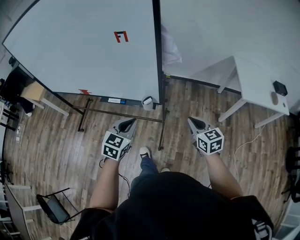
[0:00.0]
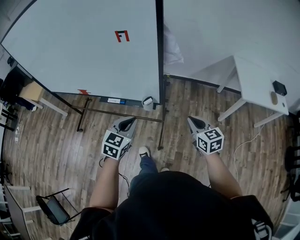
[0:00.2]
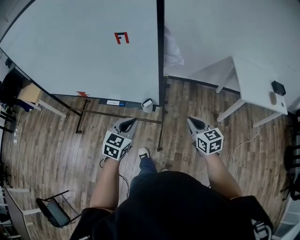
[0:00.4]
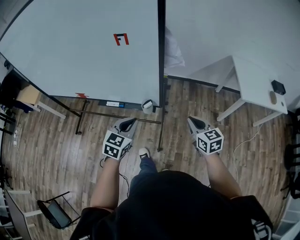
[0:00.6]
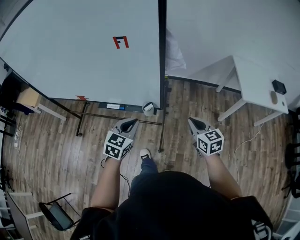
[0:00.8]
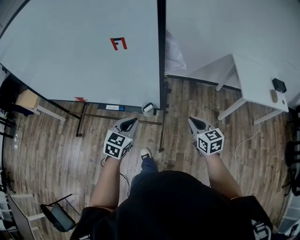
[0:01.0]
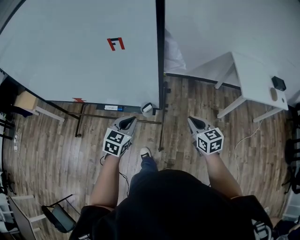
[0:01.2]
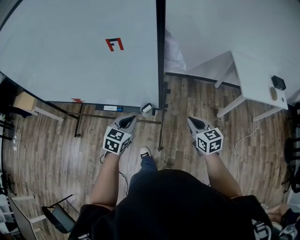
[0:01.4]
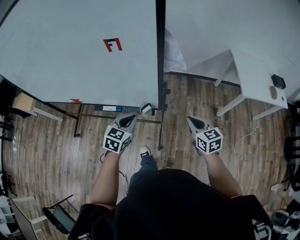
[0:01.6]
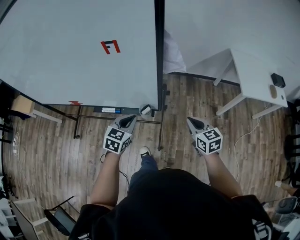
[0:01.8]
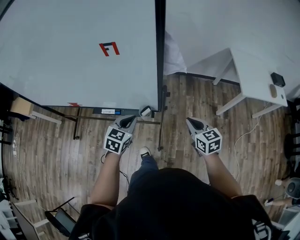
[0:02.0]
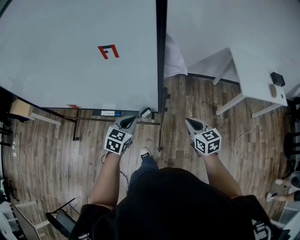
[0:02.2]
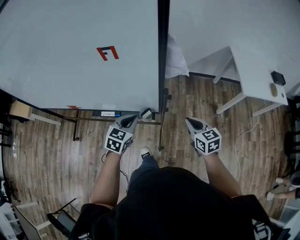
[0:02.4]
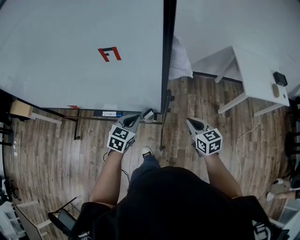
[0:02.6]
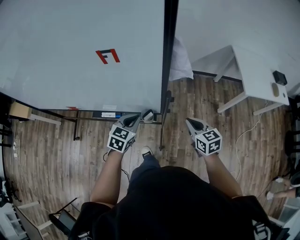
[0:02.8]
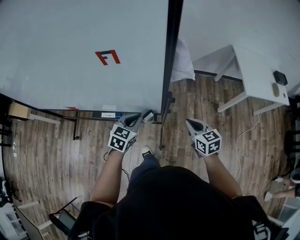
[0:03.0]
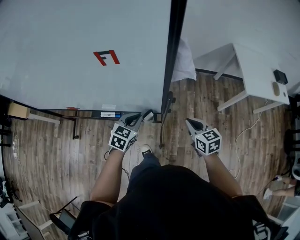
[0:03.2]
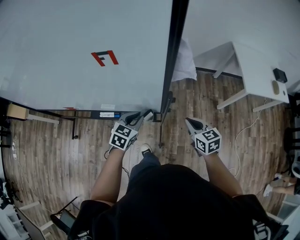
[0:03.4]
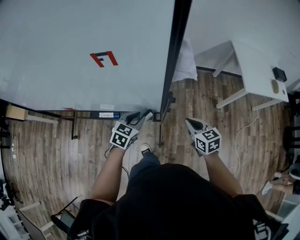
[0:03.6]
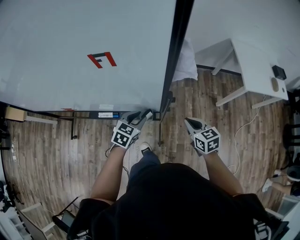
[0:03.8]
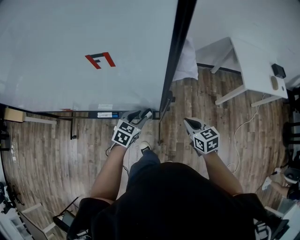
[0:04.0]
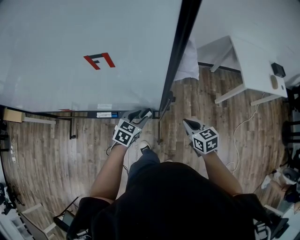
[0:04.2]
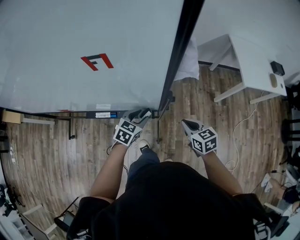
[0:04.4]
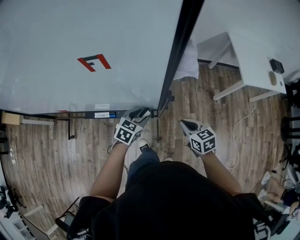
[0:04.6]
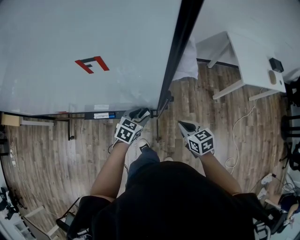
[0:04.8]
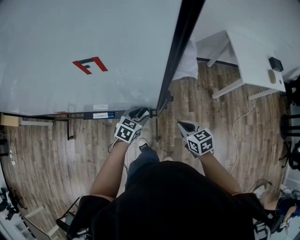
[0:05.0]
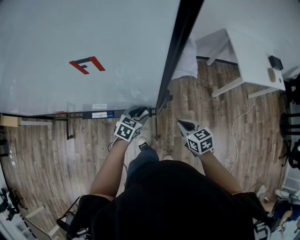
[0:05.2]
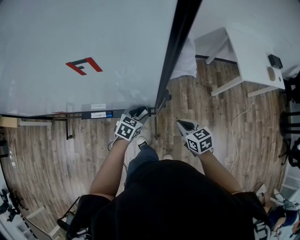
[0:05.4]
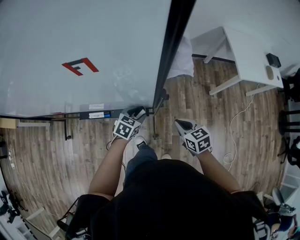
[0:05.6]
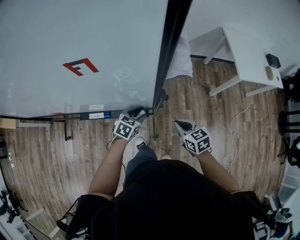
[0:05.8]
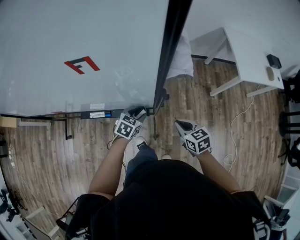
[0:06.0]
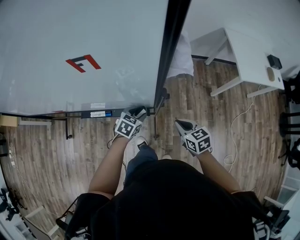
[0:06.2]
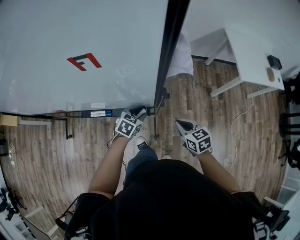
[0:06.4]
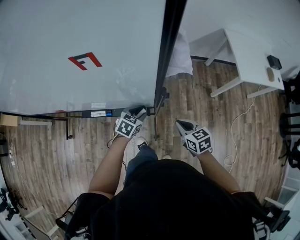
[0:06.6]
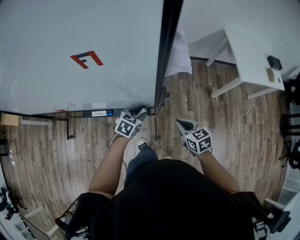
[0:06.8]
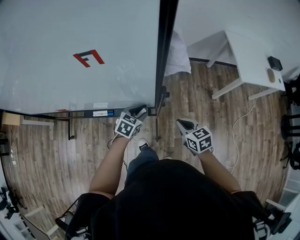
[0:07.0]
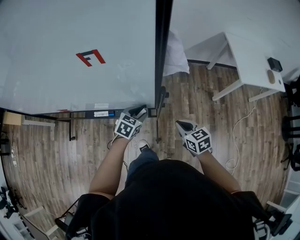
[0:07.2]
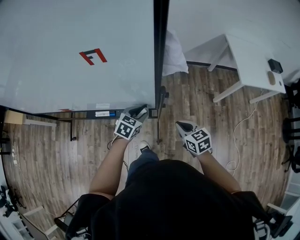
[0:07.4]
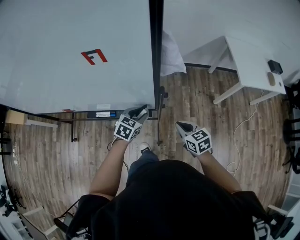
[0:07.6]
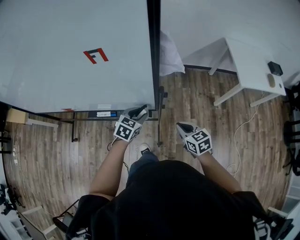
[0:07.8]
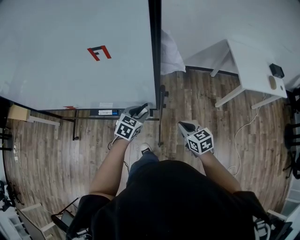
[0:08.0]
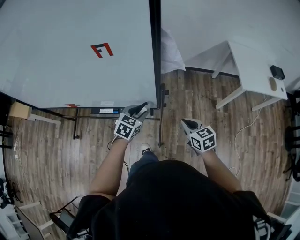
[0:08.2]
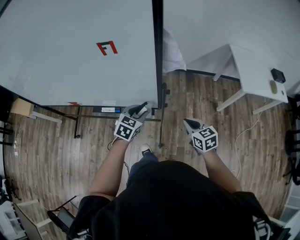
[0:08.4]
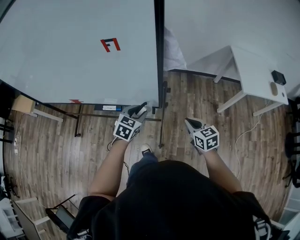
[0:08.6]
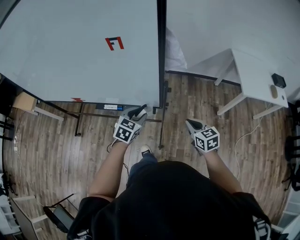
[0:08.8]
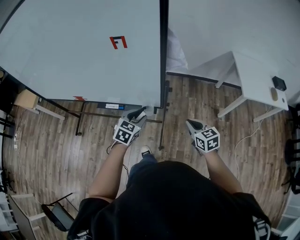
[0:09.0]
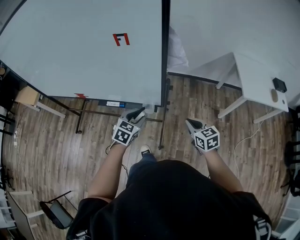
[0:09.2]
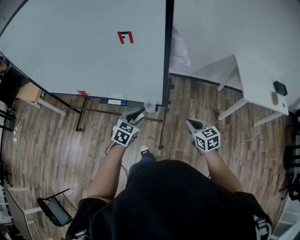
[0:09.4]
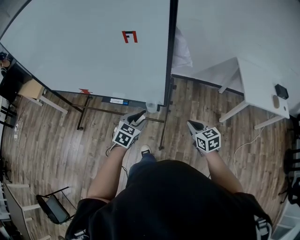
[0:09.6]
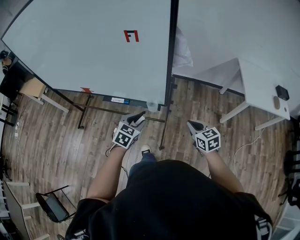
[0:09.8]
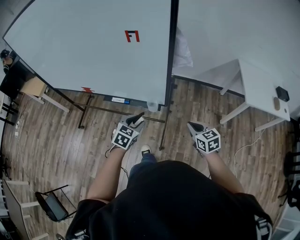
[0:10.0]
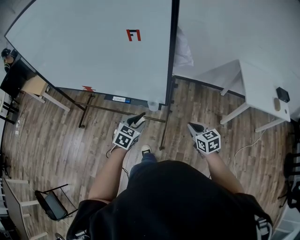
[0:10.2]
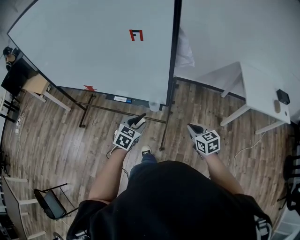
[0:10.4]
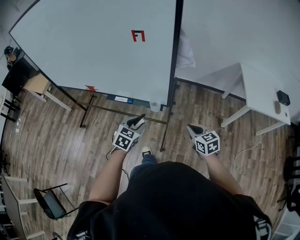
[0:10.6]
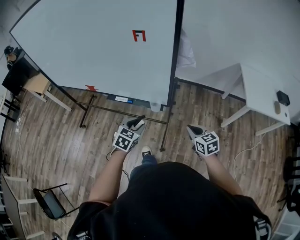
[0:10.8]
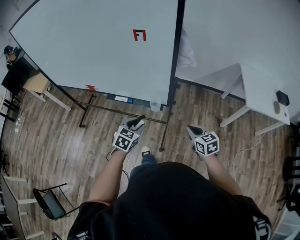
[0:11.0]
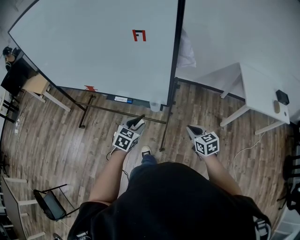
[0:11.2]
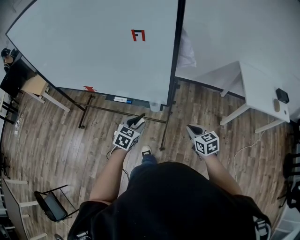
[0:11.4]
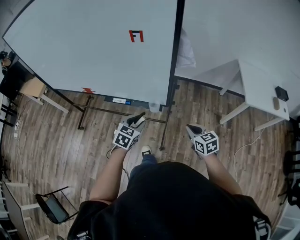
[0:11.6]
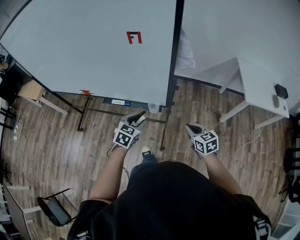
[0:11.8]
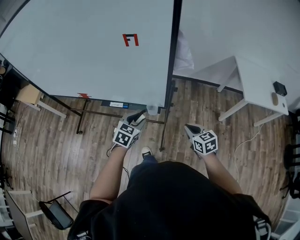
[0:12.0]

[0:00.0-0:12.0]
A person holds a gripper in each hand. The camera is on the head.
0:00.0 to 0:01.6: The left gripper moves forward and downward, approximately 15 cm. Meanwhile the right gripper is displaced forward by approximately 5 cm.
0:01.6 to 0:03.0: The left gripper heads forward, covering approximately 5 cm. The right gripper moves roughly 5 cm.
0:03.0 to 0:04.4: The left gripper travels downward by some 5 cm, and opens up.
0:04.4 to 0:06.0: The left gripper ends up about 5 cm from where it was.
0:06.0 to 0:07.6: The left gripper shifts roughly 5 cm upward.
0:07.6 to 0:09.0: The left gripper is displaced backward and upward by some 10 cm. Meanwhile the right gripper ends up about 5 cm from where it was.
0:09.0 to 0:10.4: The left gripper shifts some 10 cm backward.
0:10.4 to 0:12.0: The left gripper is displaced forward by about 5 cm.

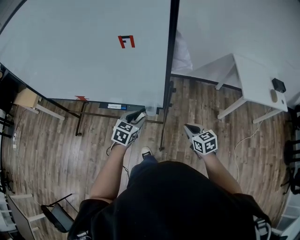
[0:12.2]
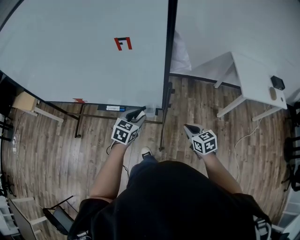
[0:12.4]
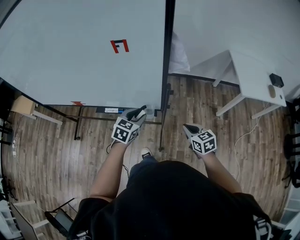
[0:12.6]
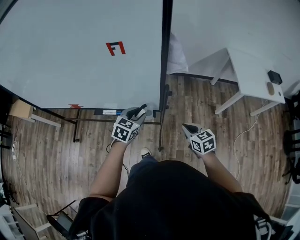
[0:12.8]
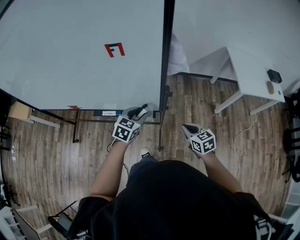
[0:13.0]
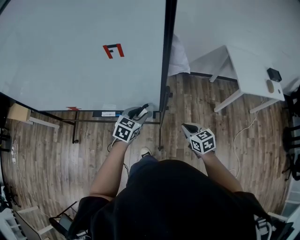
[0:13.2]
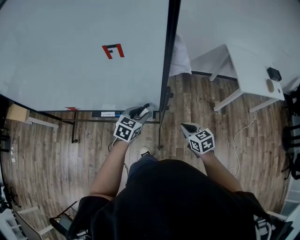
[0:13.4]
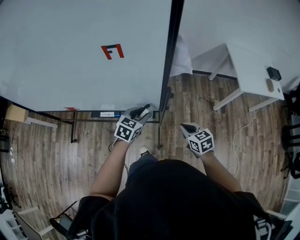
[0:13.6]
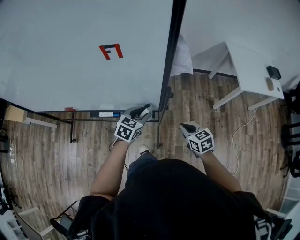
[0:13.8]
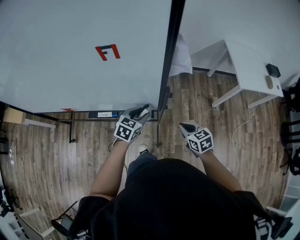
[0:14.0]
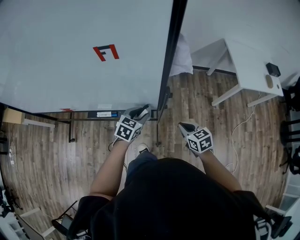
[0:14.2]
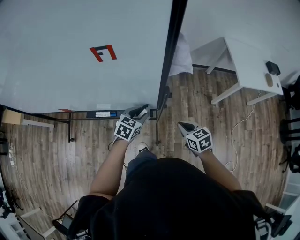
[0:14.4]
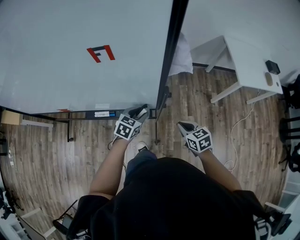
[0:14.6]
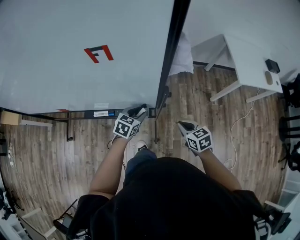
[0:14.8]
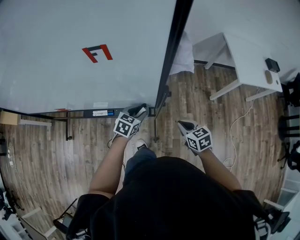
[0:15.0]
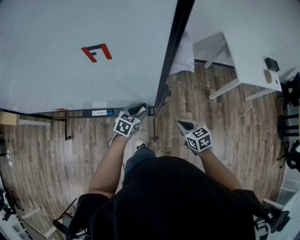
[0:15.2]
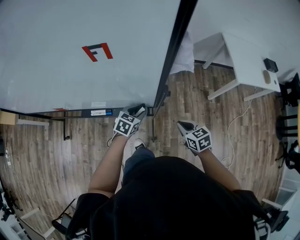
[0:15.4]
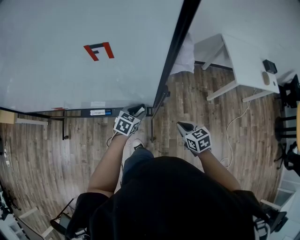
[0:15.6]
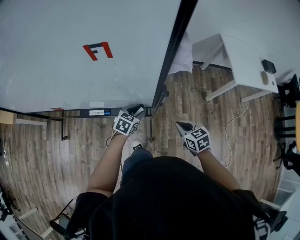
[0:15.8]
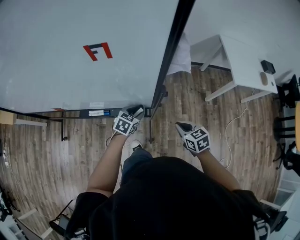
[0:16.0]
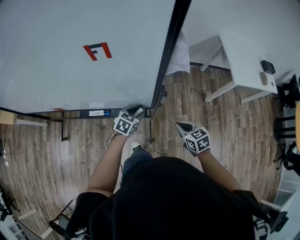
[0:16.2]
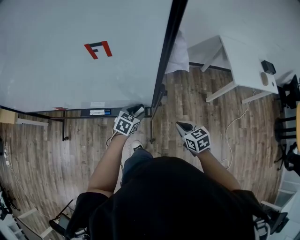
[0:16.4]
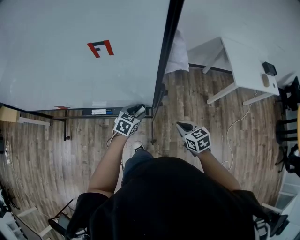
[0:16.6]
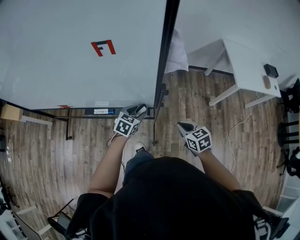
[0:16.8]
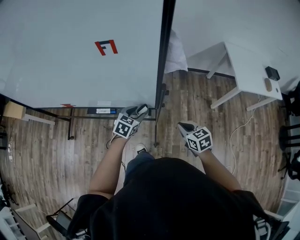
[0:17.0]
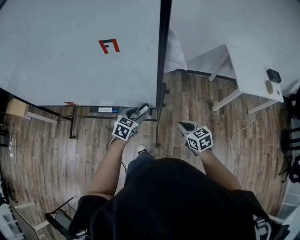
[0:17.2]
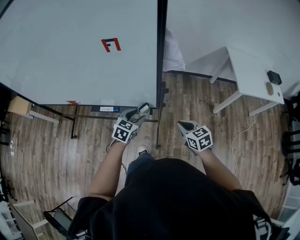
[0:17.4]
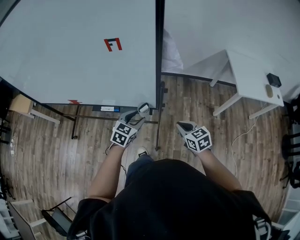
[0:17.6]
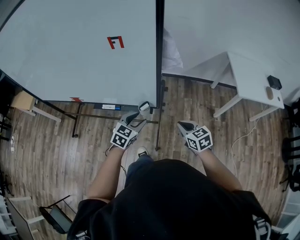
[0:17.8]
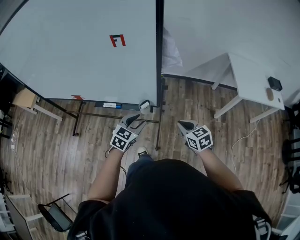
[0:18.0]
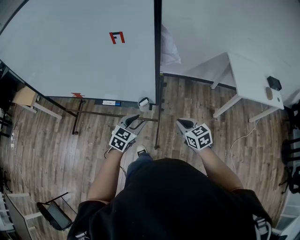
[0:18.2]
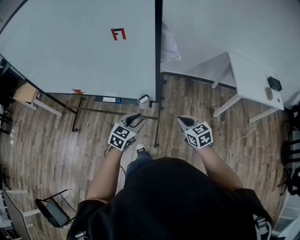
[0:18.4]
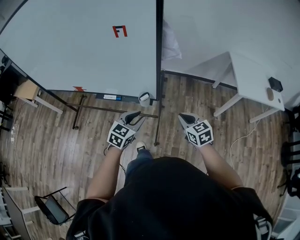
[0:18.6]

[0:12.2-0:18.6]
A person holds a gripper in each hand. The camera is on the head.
0:12.2 to 0:13.8: The right gripper ends up approximately 5 cm from where it was, while the left gripper travels forward by approximately 10 cm.
0:13.8 to 0:15.4: The left gripper heads downward, covering some 10 cm.
0:15.4 to 0:17.0: The left gripper ends up some 5 cm from where it was.
0:17.0 to 0:18.6: The left gripper is displaced backward and upward by roughly 20 cm, while the right gripper goes approximately 10 cm upward and backward.

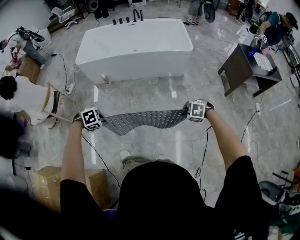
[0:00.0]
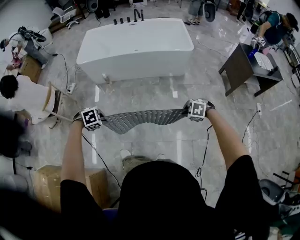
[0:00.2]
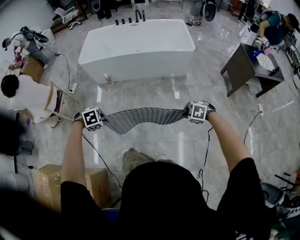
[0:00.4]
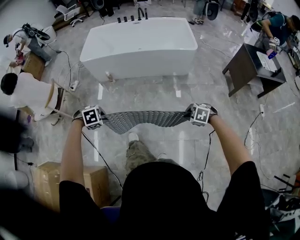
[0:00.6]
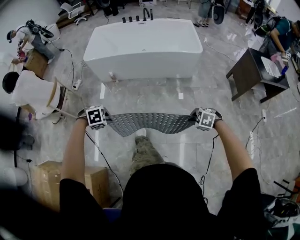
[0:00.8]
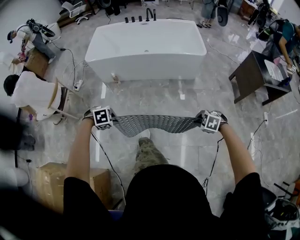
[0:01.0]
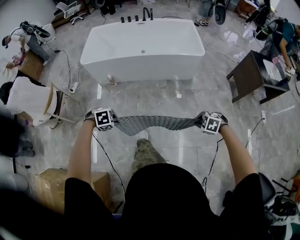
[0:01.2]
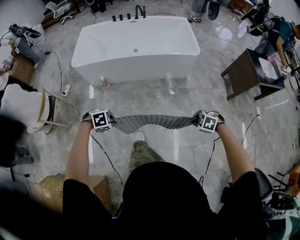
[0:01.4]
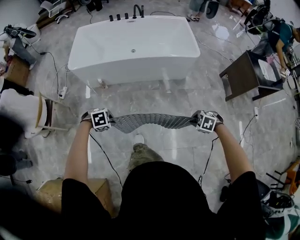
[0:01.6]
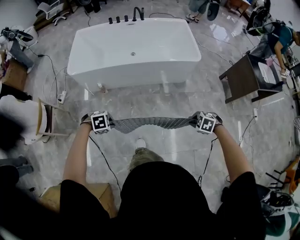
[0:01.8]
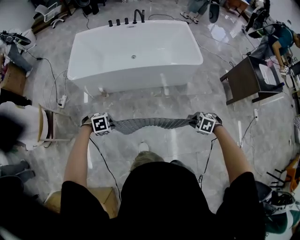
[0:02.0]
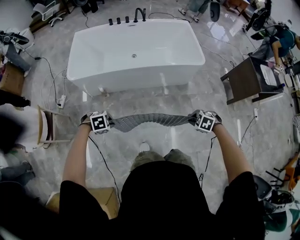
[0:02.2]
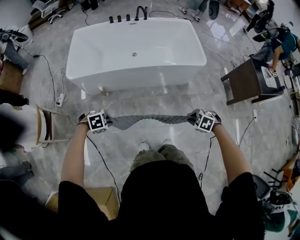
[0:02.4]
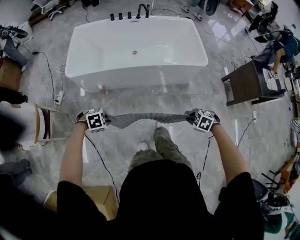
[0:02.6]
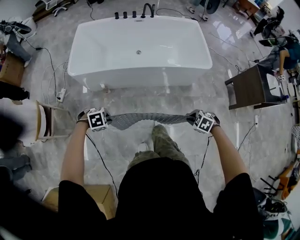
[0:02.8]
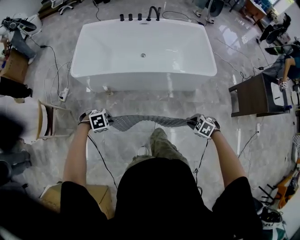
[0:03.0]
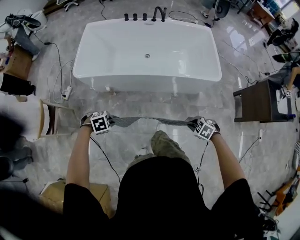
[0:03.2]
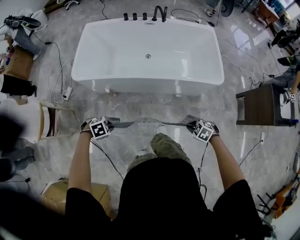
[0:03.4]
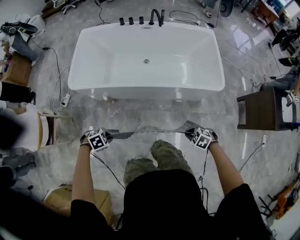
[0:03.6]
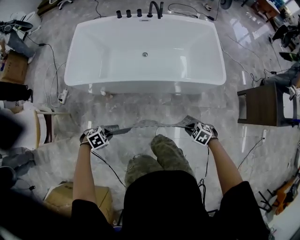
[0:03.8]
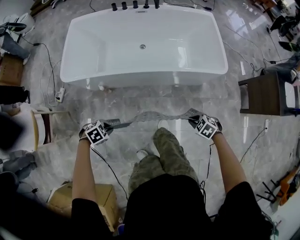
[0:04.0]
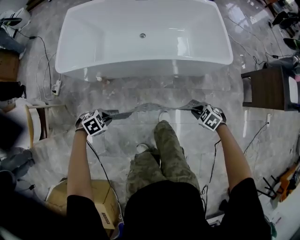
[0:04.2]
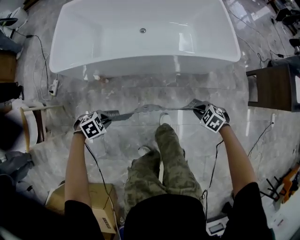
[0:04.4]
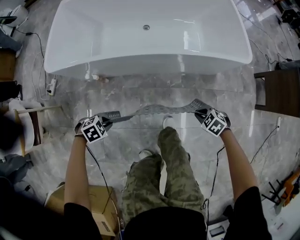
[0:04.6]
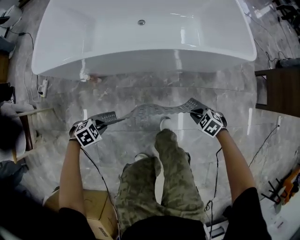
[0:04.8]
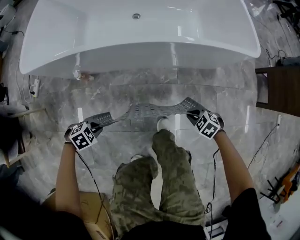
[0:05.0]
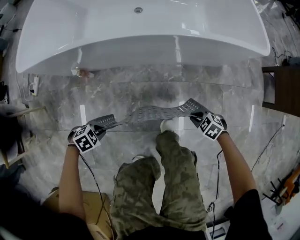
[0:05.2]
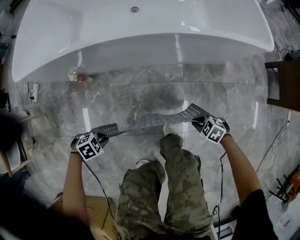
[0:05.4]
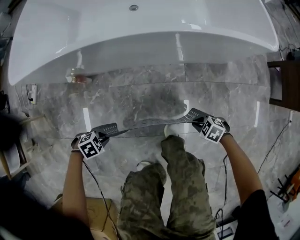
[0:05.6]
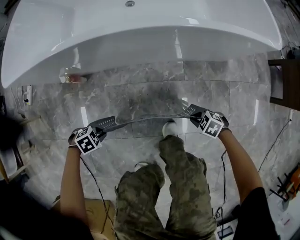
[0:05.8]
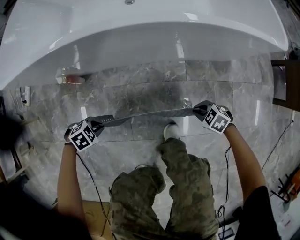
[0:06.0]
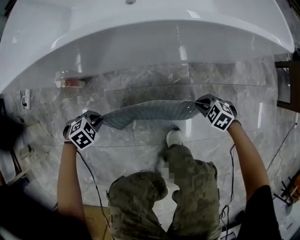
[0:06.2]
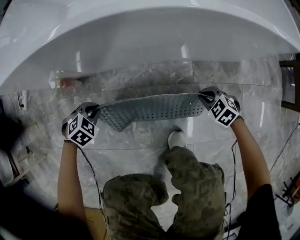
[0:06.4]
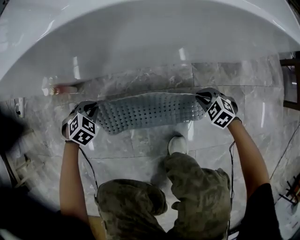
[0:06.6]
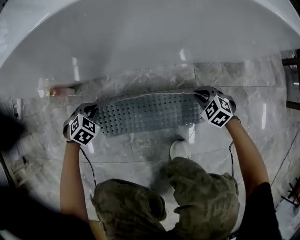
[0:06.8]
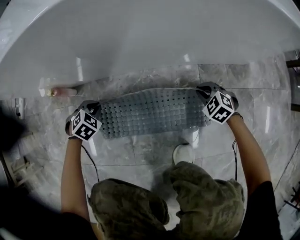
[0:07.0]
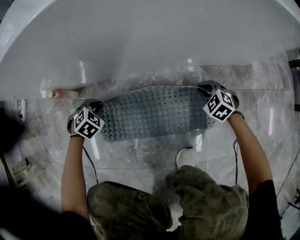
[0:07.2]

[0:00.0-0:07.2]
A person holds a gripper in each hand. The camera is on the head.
0:00.0 to 0:01.4: The right gripper changes place by some 10 cm; the left gripper changes place by about 15 cm.
0:01.4 to 0:02.8: The right gripper shifts by about 25 cm. Meanwhile the left gripper changes place by approximately 25 cm.
0:02.8 to 0:04.4: The grippers both shift downward by some 20 cm.
0:04.4 to 0:05.8: The grippers both shift downward by some 35 cm.
0:05.8 to 0:07.2: The left gripper shifts by approximately 30 cm, and turns by roughly 40 degrees. The right gripper shifts by roughly 25 cm, and swivels approximately 30 degrees.
